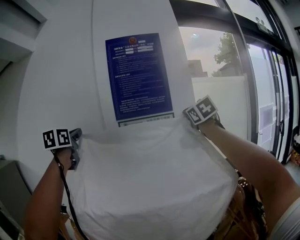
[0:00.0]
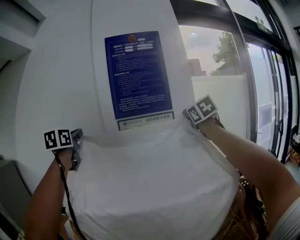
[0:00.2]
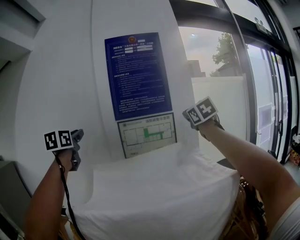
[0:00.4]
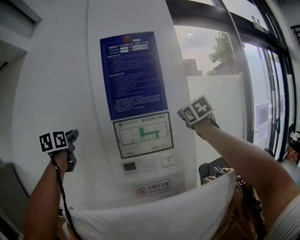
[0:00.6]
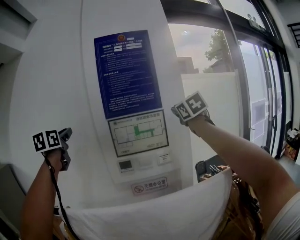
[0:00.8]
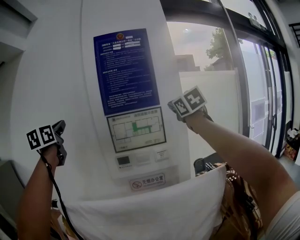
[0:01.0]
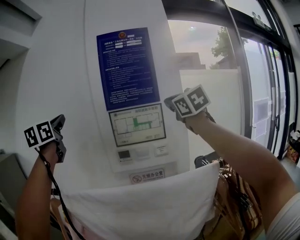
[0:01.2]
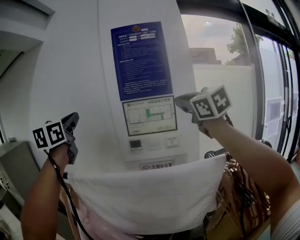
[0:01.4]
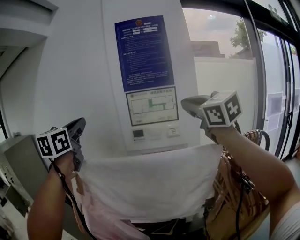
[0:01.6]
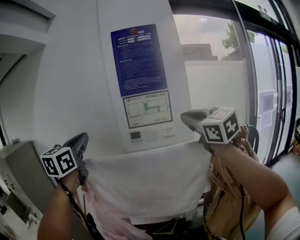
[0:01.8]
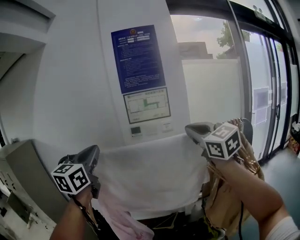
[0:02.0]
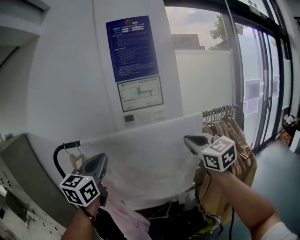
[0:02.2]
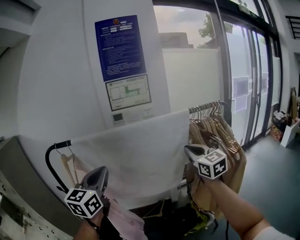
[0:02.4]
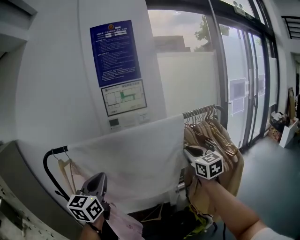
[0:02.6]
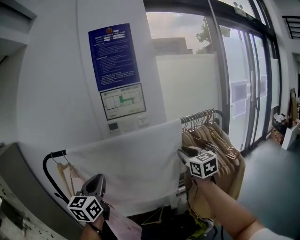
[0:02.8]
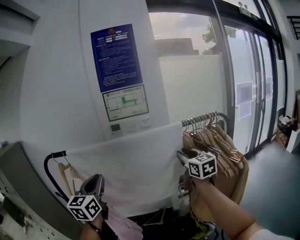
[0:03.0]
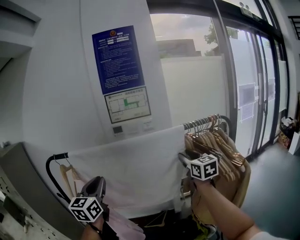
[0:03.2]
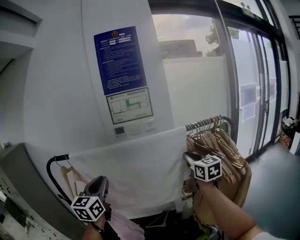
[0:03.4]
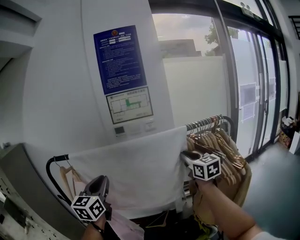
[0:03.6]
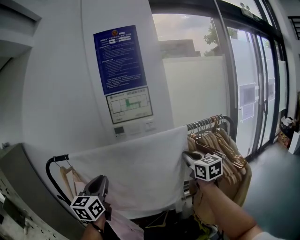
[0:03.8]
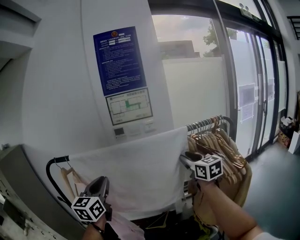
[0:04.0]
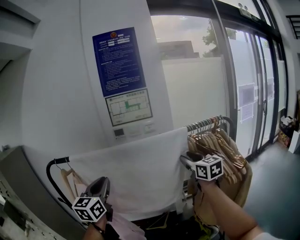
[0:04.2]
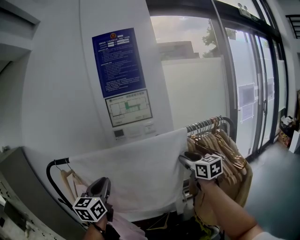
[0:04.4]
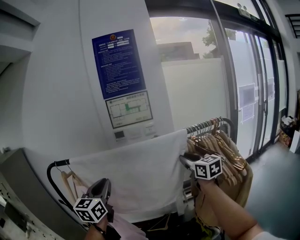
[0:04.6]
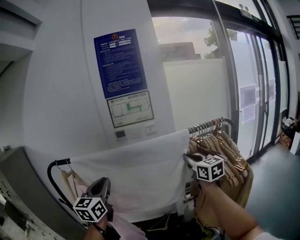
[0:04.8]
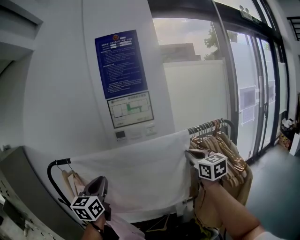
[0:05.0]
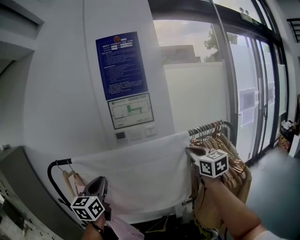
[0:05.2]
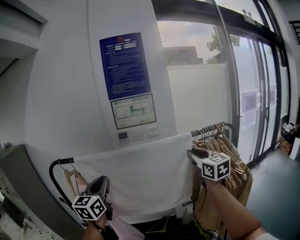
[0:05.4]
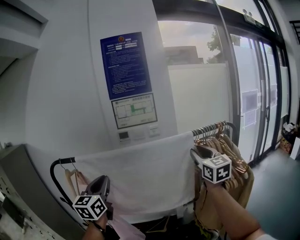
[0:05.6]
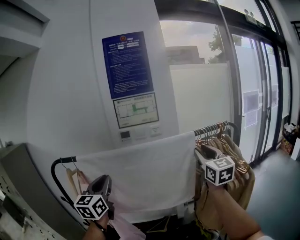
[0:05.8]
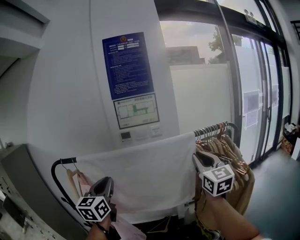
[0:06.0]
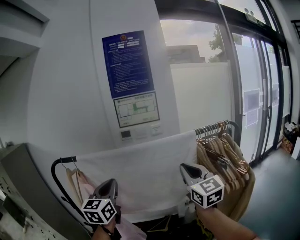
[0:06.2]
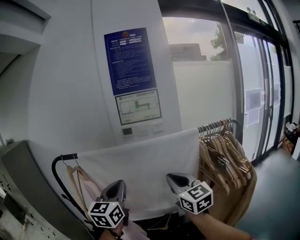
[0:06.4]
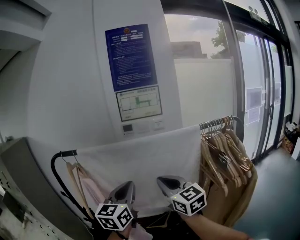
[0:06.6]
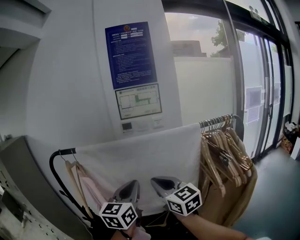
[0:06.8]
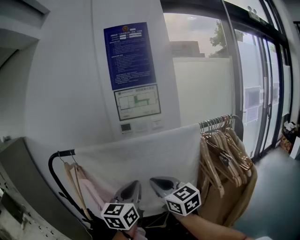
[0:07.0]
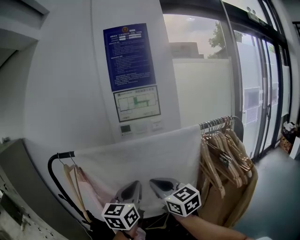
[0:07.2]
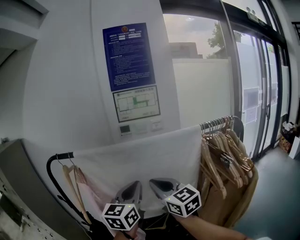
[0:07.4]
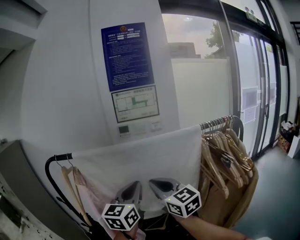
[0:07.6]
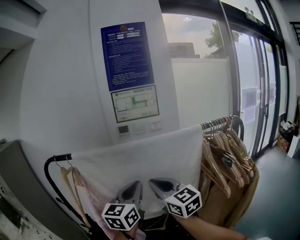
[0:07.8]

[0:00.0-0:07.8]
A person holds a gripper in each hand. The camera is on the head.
0:00.0 to 0:01.6: The two grippers go roughly 20 cm backward. The right gripper changes its angle by roughly 30 degrees.
0:01.6 to 0:03.2: The left gripper is displaced downward and backward by approximately 30 cm, while the right gripper moves downward, some 25 cm, turns by roughly 30 degrees, and opens.
0:03.2 to 0:04.6: The right gripper closes, then reopens.
0:04.6 to 0:06.2: The right gripper is displaced backward and to the left by approximately 10 cm, and closes.
0:06.2 to 0:07.8: The left gripper goes some 10 cm to the right, while the right gripper shifts some 15 cm to the left.

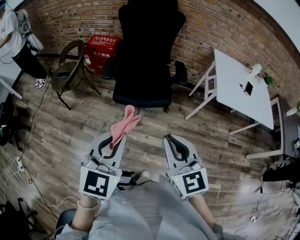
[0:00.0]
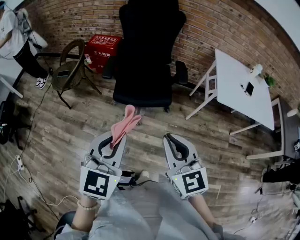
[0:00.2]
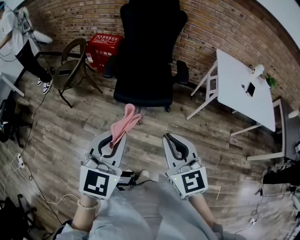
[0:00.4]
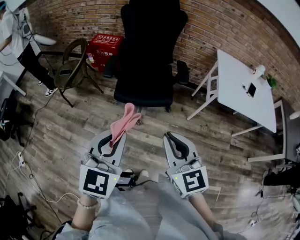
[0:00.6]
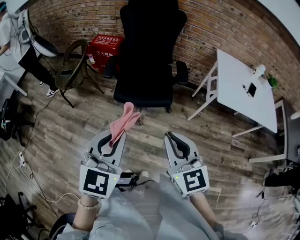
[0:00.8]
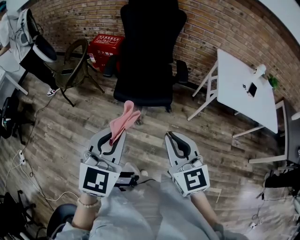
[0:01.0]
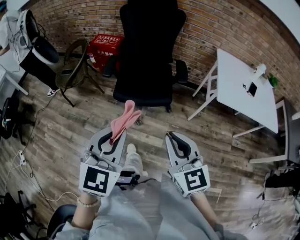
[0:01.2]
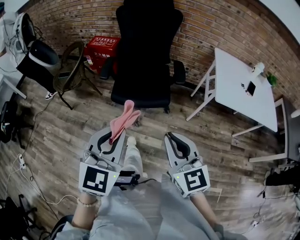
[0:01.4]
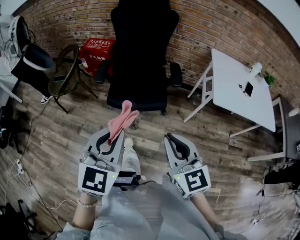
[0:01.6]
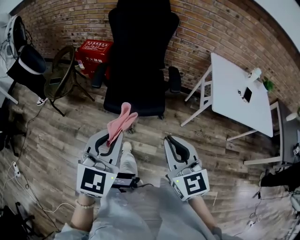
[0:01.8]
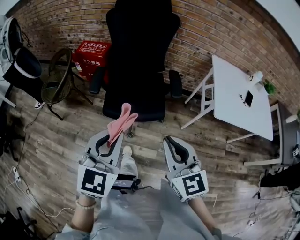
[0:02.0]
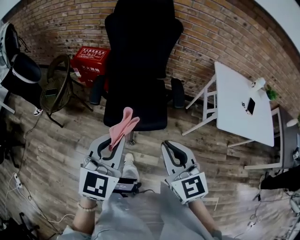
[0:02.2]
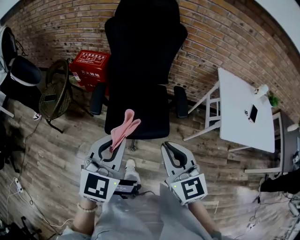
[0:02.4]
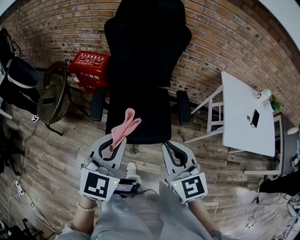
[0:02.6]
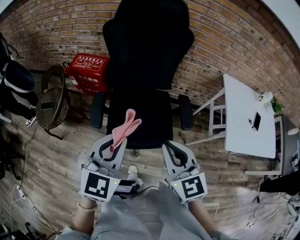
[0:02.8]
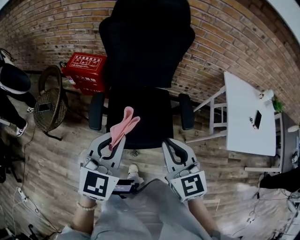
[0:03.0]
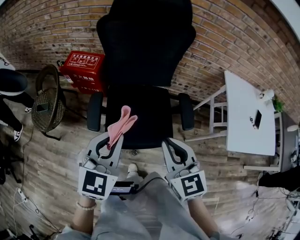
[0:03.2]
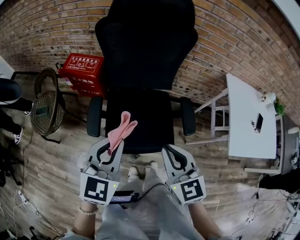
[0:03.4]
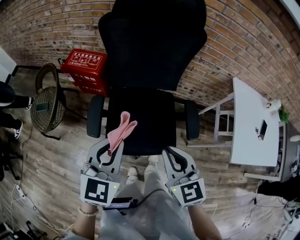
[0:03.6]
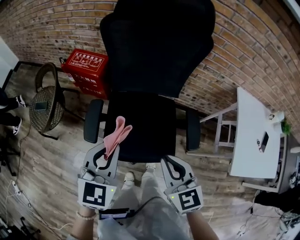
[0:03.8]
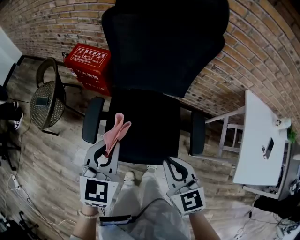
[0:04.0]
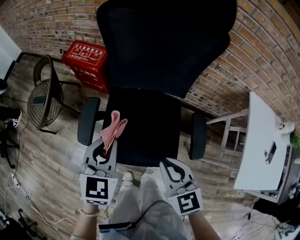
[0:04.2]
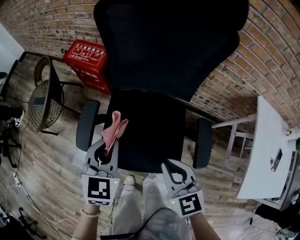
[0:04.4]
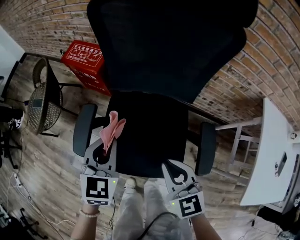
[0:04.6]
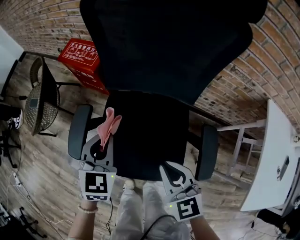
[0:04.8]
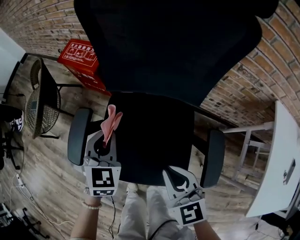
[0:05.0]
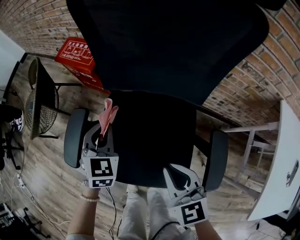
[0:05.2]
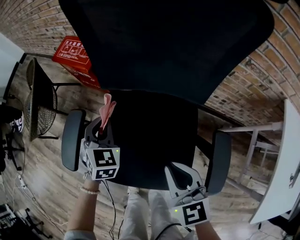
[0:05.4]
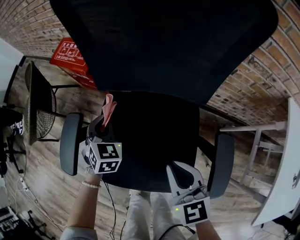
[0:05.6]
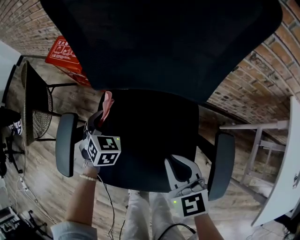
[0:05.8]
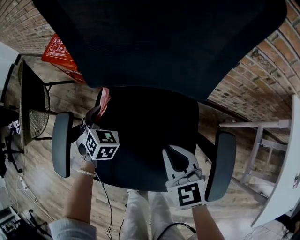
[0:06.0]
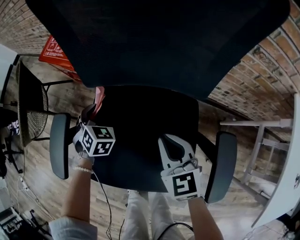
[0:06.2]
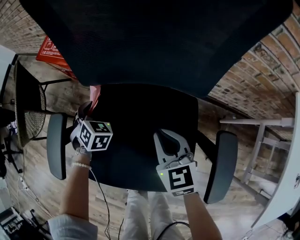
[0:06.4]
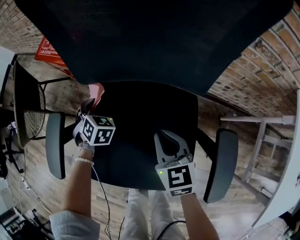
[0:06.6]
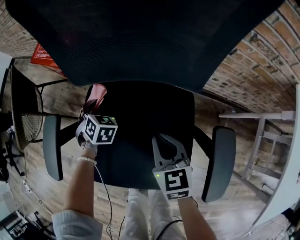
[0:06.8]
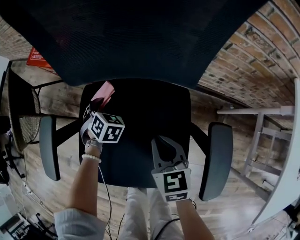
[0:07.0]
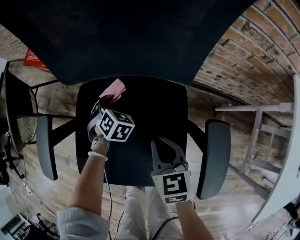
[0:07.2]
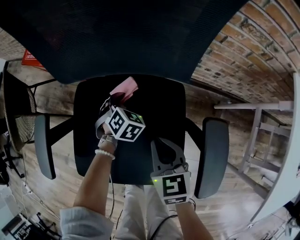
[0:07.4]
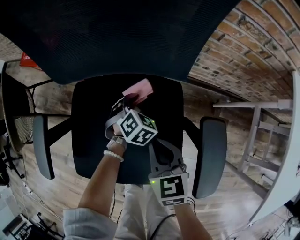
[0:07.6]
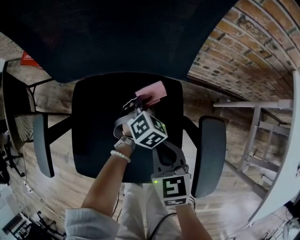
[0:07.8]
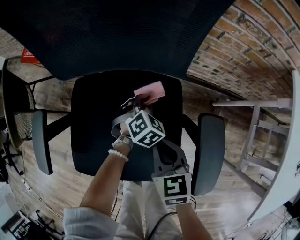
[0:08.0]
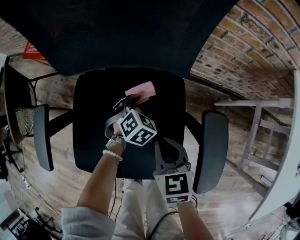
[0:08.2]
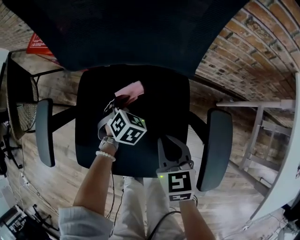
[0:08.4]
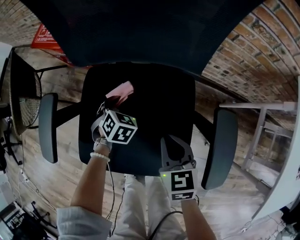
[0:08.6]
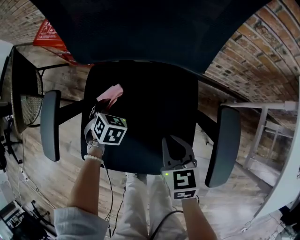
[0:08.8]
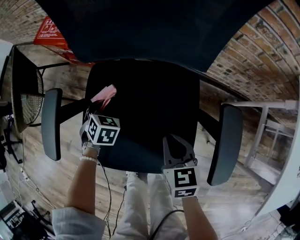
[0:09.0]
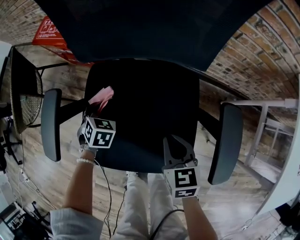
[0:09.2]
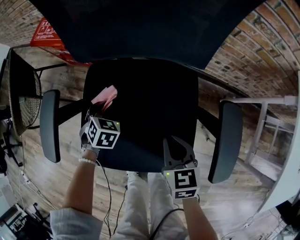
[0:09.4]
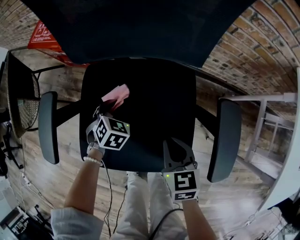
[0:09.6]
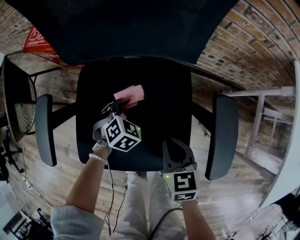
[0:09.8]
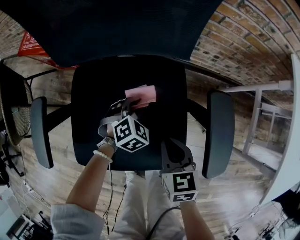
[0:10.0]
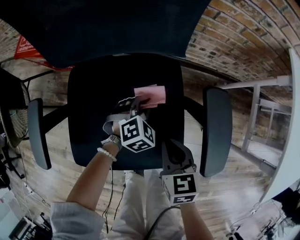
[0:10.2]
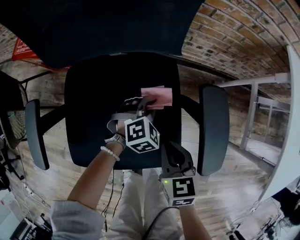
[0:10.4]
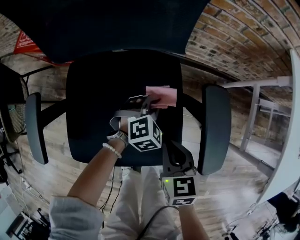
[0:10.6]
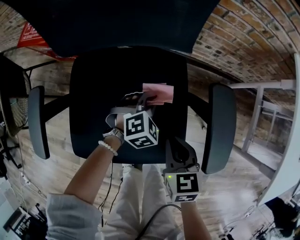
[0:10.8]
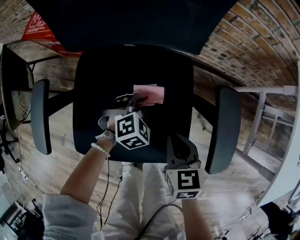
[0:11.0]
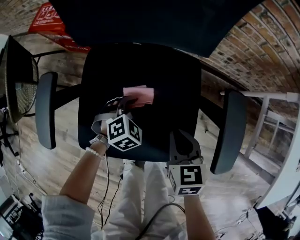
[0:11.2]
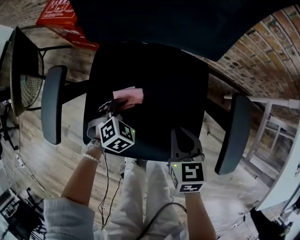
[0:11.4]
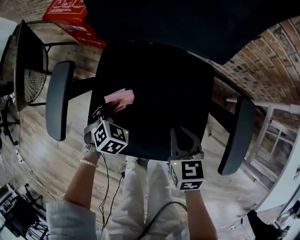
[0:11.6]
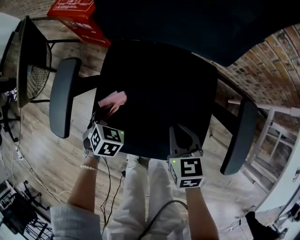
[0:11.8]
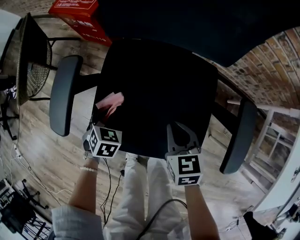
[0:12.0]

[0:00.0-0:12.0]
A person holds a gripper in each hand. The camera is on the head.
0:00.0 to 0:01.6: Both grippers move to the right, roughly 5 cm.
0:01.6 to 0:03.0: The pair of grippers is taken forward, some 40 cm.
0:03.0 to 0:04.4: Both grippers travel together downward and forward, about 25 cm. The left gripper rotates some 30 degrees.
0:04.4 to 0:06.0: Both grippers travel together downward and forward, approximately 30 cm. The left gripper swivels some 40 degrees.
0:06.0 to 0:07.6: The right gripper travels downward by about 5 cm, moves roughly 5 cm forward and comes back, and changes its angle by roughly 20 degrees. Meanwhile the left gripper goes roughly 25 cm to the right and downward, and rotates about 20 degrees.
0:07.6 to 0:09.0: The right gripper changes place by approximately 5 cm. Meanwhile the left gripper moves to the left, approximately 20 cm, and changes its angle by approximately 20 degrees.
0:09.0 to 0:10.4: The left gripper ends up about 30 cm from where it was, and rotates roughly 50 degrees. Meanwhile the right gripper ends up about 10 cm from where it was.
0:10.4 to 0:12.0: The right gripper changes place by some 10 cm. Meanwhile the left gripper ends up approximately 35 cm from where it was, and twists about 40 degrees counterclockwise, seen from behind.

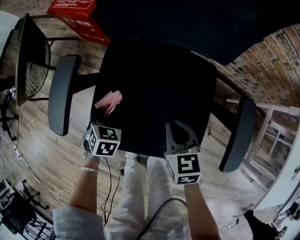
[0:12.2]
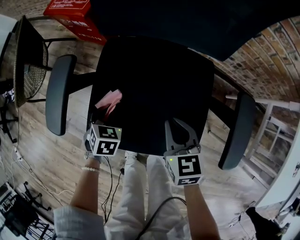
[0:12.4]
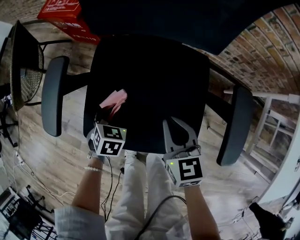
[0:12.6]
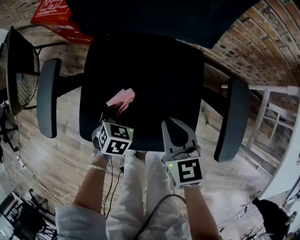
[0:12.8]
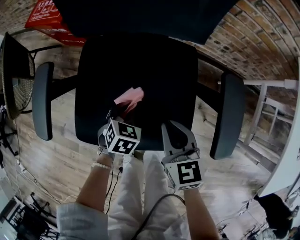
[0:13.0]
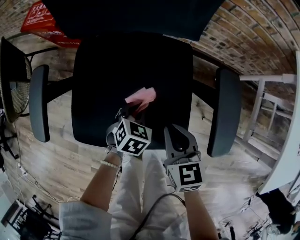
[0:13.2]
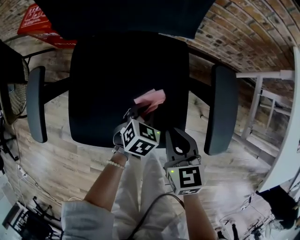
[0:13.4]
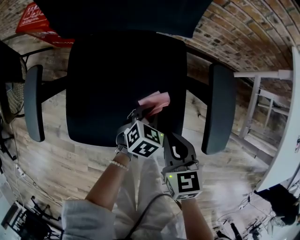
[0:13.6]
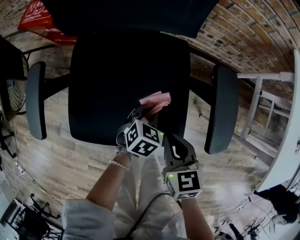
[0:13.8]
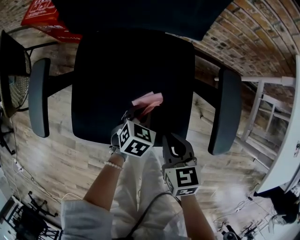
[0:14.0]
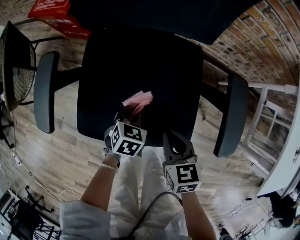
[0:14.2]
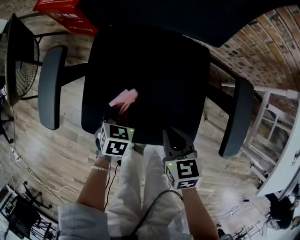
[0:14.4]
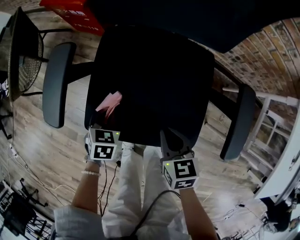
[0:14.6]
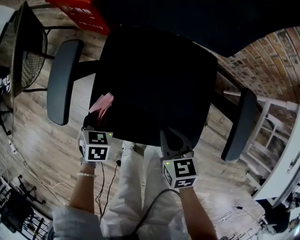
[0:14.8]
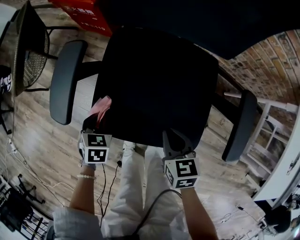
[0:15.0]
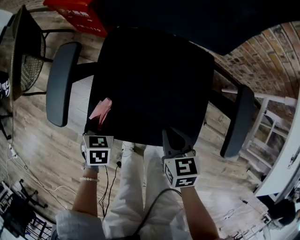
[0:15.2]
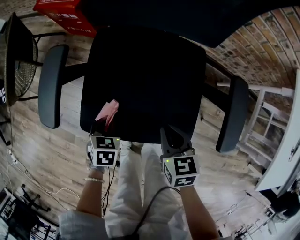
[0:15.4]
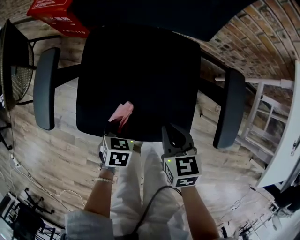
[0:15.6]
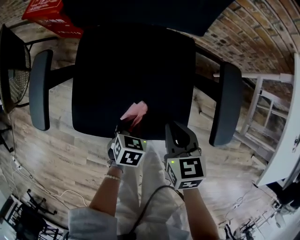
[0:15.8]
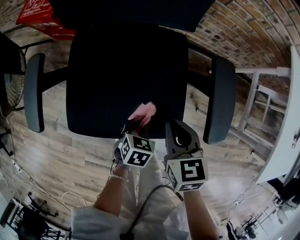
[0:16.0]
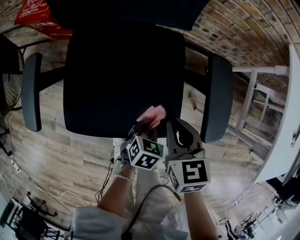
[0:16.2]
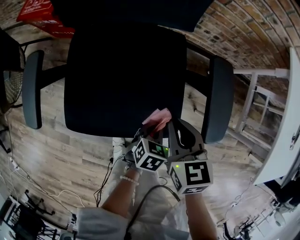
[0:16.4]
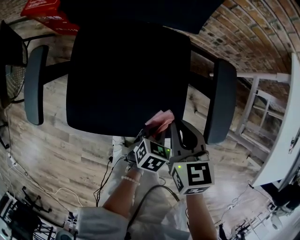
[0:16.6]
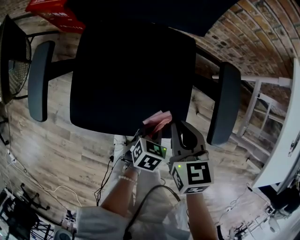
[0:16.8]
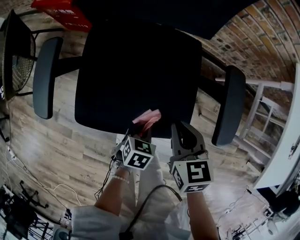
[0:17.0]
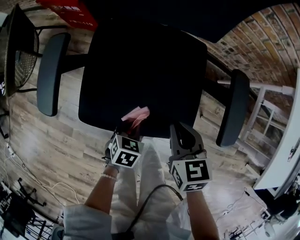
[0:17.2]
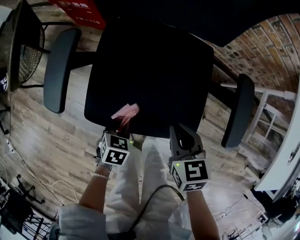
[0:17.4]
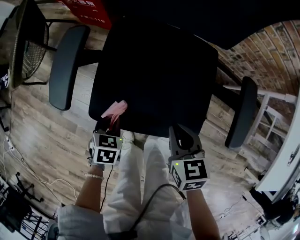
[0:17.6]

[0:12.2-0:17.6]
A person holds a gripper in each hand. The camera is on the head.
0:12.2 to 0:13.6: The right gripper shifts by roughly 15 cm; the left gripper moves about 30 cm, and turns by roughly 30 degrees.
0:13.6 to 0:15.0: The left gripper shifts by some 35 cm, and rotates roughly 40 degrees, while the right gripper moves roughly 10 cm.
0:15.0 to 0:16.2: The left gripper shifts by approximately 35 cm, and swivels approximately 30 degrees; the right gripper shifts by approximately 15 cm.
0:16.2 to 0:17.6: The right gripper travels to the left by approximately 10 cm. Meanwhile the left gripper travels to the left by roughly 25 cm, and turns by approximately 20 degrees.
